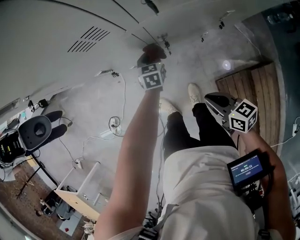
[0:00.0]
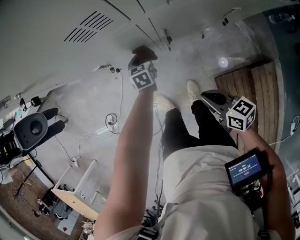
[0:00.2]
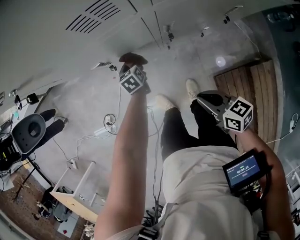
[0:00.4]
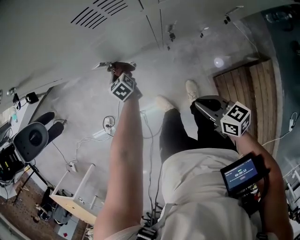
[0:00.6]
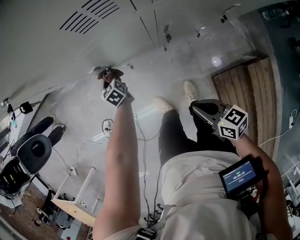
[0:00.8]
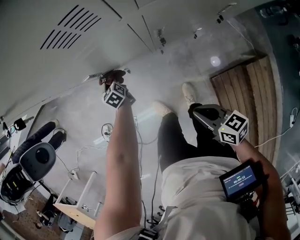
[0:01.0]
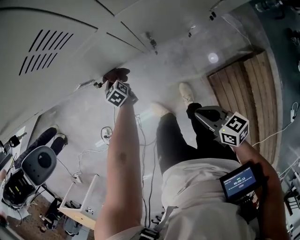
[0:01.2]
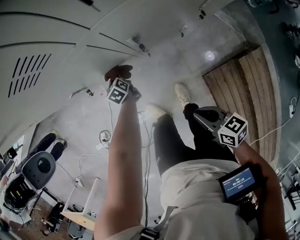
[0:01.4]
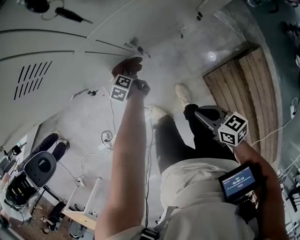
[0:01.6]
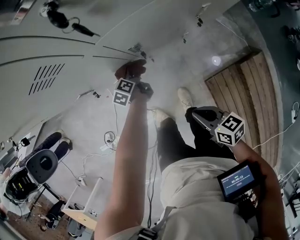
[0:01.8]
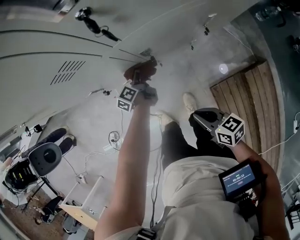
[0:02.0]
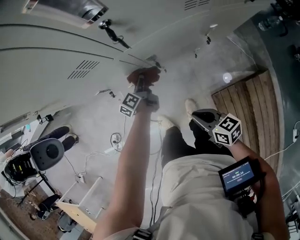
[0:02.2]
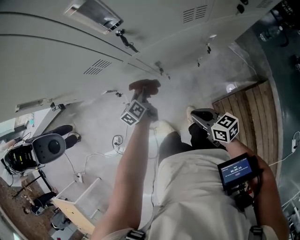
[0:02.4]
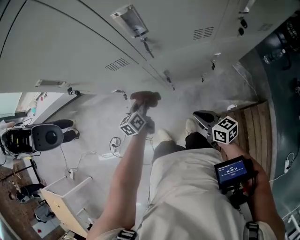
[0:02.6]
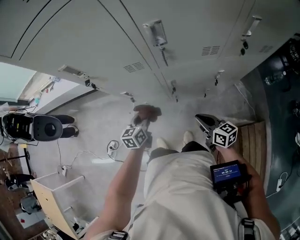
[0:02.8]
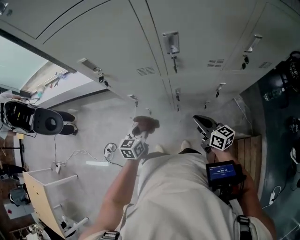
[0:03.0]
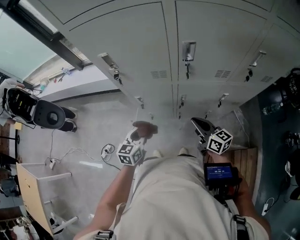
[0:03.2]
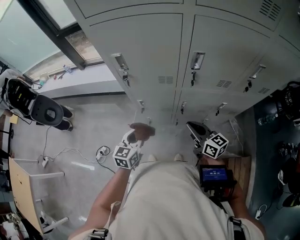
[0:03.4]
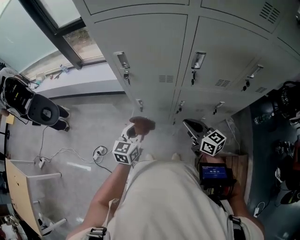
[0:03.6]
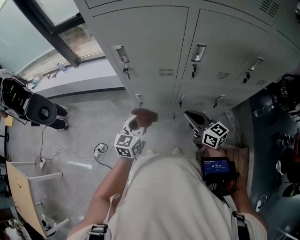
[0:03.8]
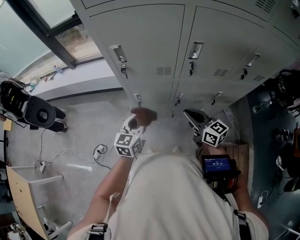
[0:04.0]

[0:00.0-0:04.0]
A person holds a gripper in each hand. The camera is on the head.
0:00.0 to 0:01.4: The right gripper moves downward, approximately 5 cm. The left gripper moves downward and to the left, roughly 20 cm, and turns by about 30 degrees.
0:01.4 to 0:02.6: The left gripper heads upward, covering some 30 cm, and swivels some 30 degrees. The right gripper goes approximately 15 cm upward, forward and to the right.
0:02.6 to 0:04.0: The left gripper moves upward, to the left and backward, approximately 25 cm, and changes its angle by roughly 30 degrees, while the right gripper heads upward and to the left, covering about 20 cm, and swivels approximately 20 degrees.

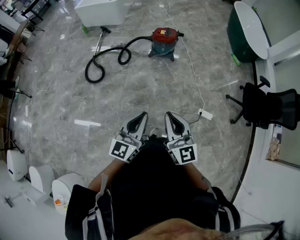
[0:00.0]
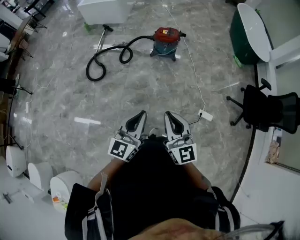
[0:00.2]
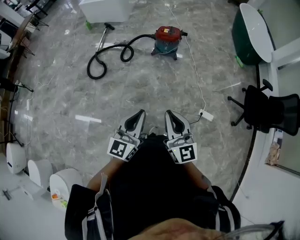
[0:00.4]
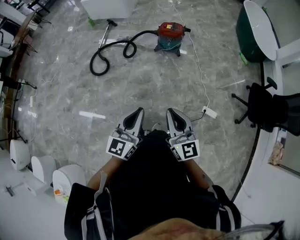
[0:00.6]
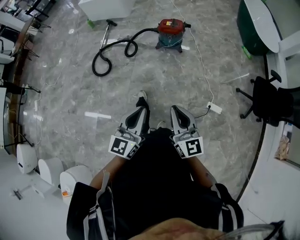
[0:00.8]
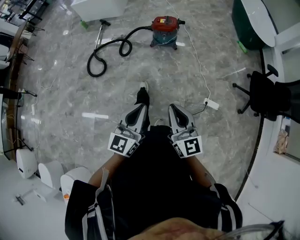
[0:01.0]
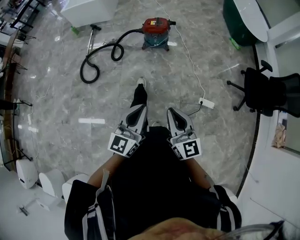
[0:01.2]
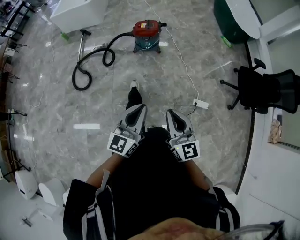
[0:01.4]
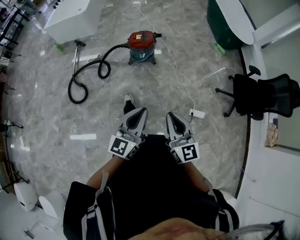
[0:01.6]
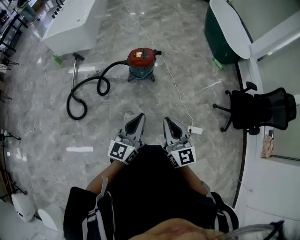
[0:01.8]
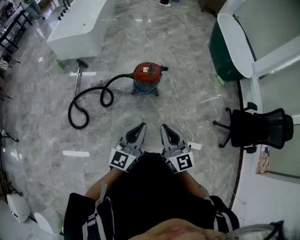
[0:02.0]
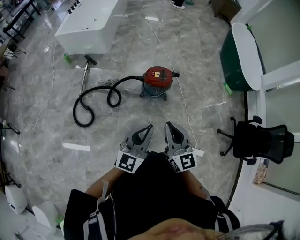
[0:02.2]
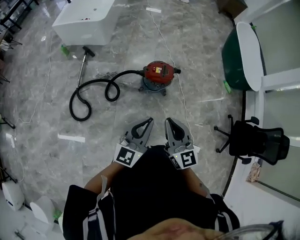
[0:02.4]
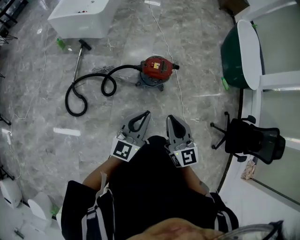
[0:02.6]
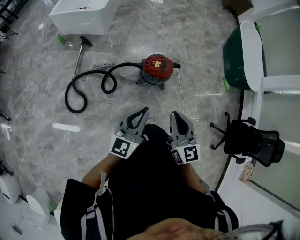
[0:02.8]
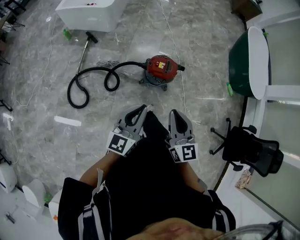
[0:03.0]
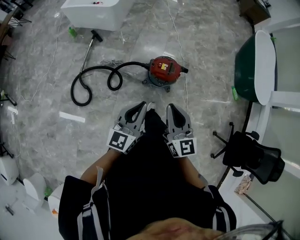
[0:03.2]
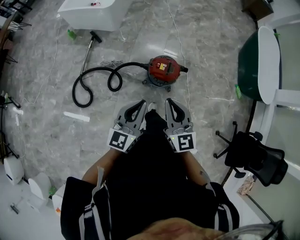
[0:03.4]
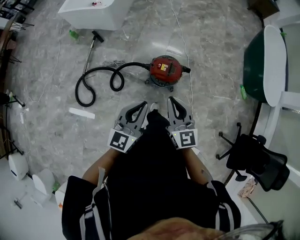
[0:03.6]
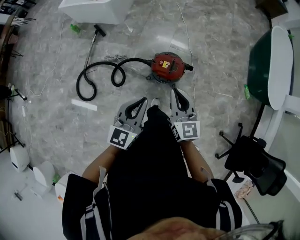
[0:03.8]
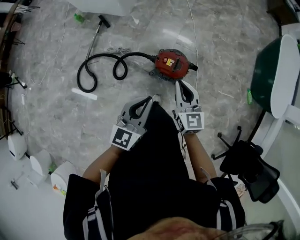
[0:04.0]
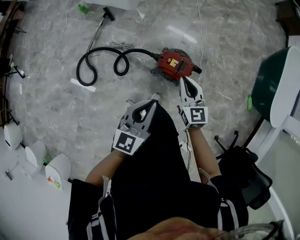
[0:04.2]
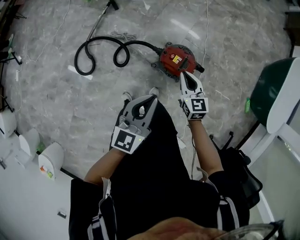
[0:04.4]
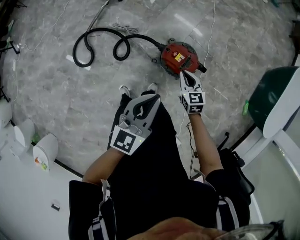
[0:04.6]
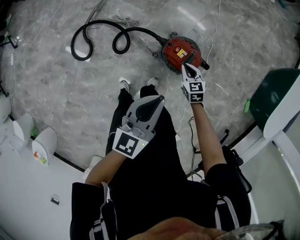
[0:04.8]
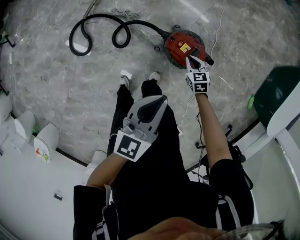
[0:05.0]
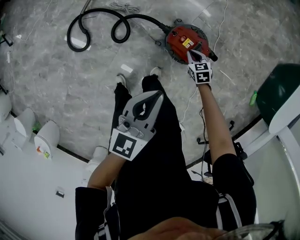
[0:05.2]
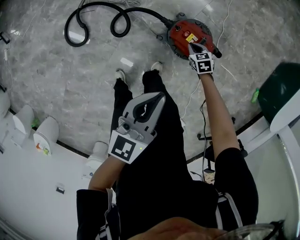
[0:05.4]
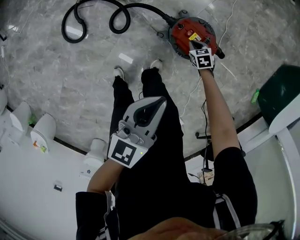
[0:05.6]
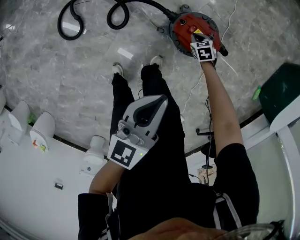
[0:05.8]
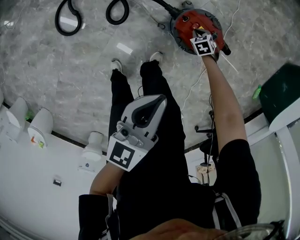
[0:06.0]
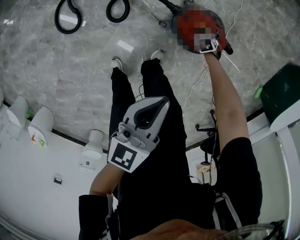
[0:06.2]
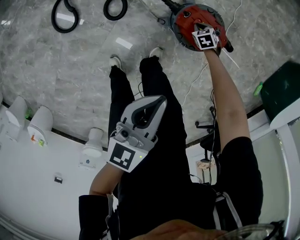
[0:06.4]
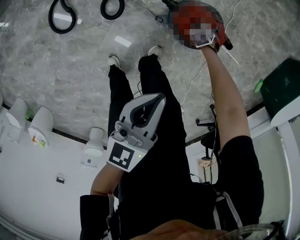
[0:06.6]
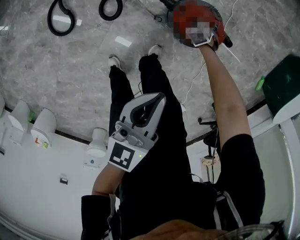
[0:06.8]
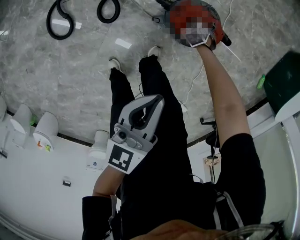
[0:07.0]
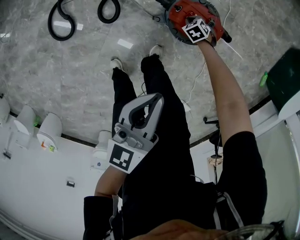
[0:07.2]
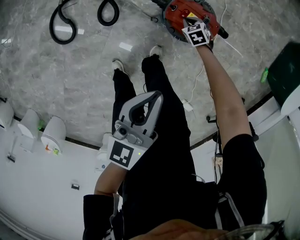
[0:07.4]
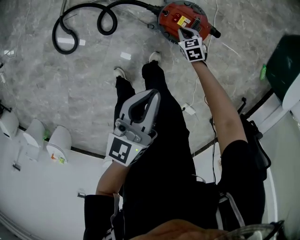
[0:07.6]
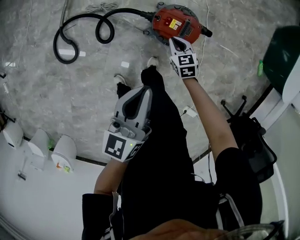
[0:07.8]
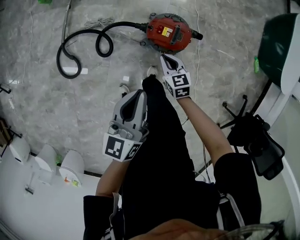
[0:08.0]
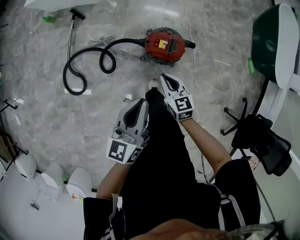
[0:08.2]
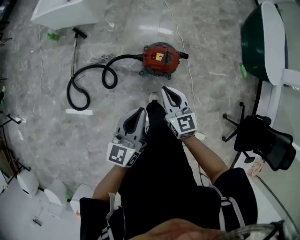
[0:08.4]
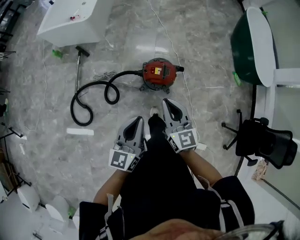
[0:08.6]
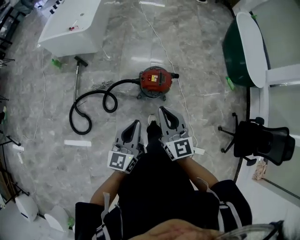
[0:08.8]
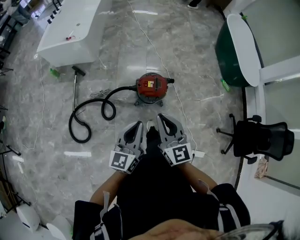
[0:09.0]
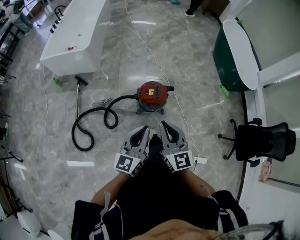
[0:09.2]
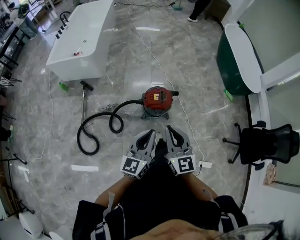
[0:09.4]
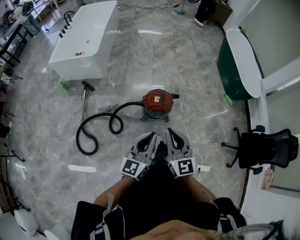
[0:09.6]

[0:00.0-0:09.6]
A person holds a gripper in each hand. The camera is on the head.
0:00.0 to 0:01.6: The grippers both shift forward and to the right by about 15 cm.
0:01.6 to 0:03.2: The two grippers travel together, forward, about 50 cm.
0:03.2 to 0:04.8: The right gripper is displaced downward and forward by some 50 cm, and angles its fingers downward, by some 40 degrees, while the left gripper goes about 20 cm forward, to the right and downward.
0:04.8 to 0:06.4: The left gripper goes approximately 15 cm downward, while the right gripper moves downward, about 30 cm, and turns by roughly 30 degrees.
0:06.4 to 0:08.0: The right gripper heads upward, covering about 30 cm, and points its fingers approximately 30 degrees further upward. The left gripper travels upward by approximately 10 cm.
0:08.0 to 0:09.6: The left gripper shifts by about 25 cm, and swivels approximately 30 degrees. Meanwhile the right gripper shifts some 40 cm upward, and tips its fingers upward by about 40 degrees.

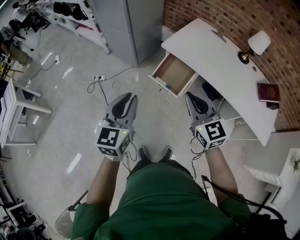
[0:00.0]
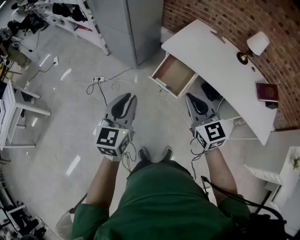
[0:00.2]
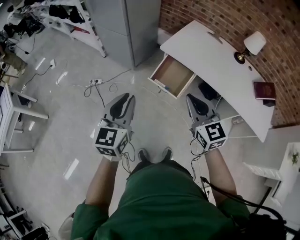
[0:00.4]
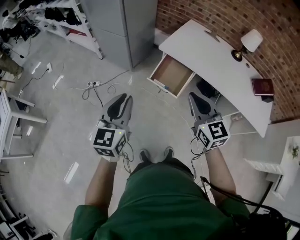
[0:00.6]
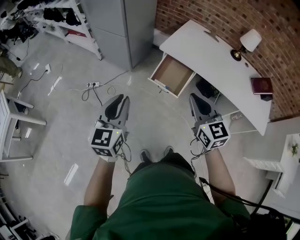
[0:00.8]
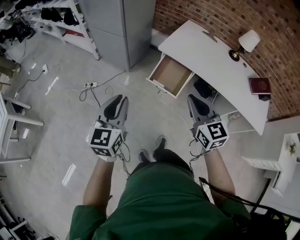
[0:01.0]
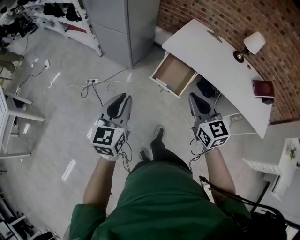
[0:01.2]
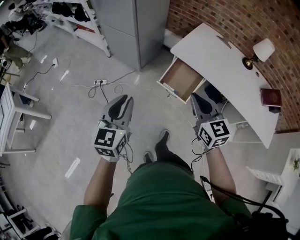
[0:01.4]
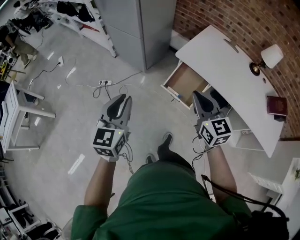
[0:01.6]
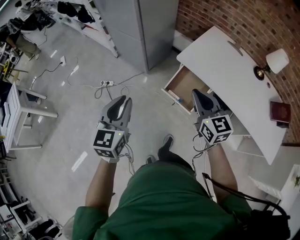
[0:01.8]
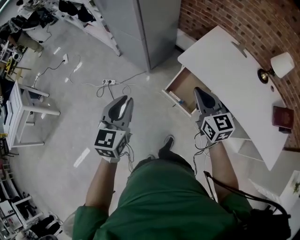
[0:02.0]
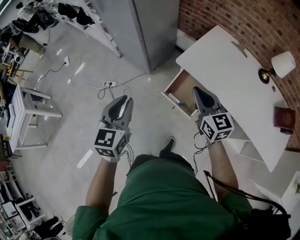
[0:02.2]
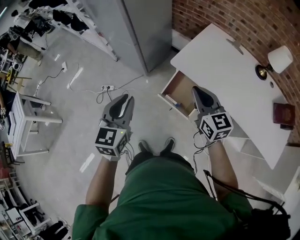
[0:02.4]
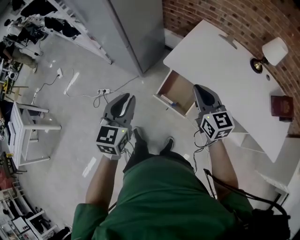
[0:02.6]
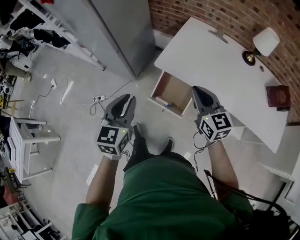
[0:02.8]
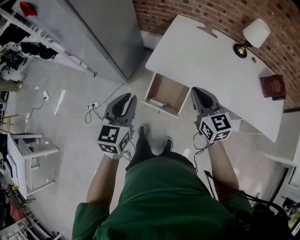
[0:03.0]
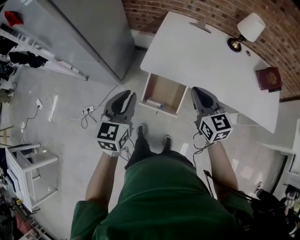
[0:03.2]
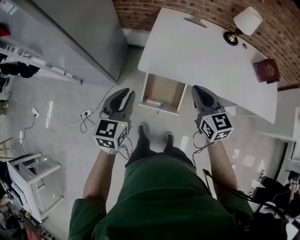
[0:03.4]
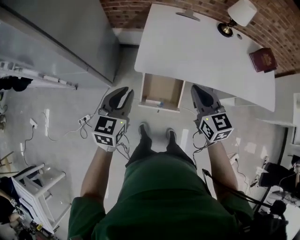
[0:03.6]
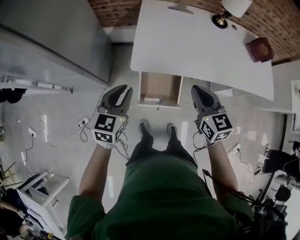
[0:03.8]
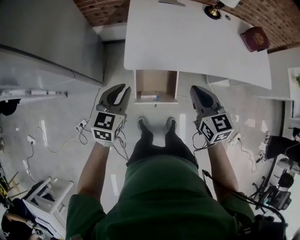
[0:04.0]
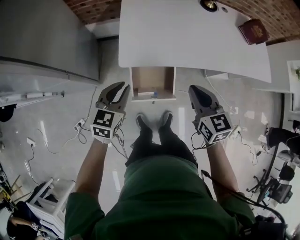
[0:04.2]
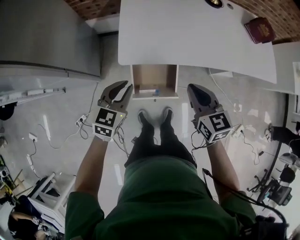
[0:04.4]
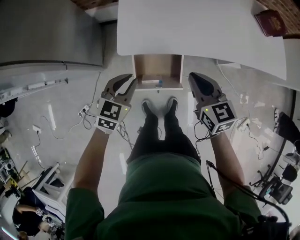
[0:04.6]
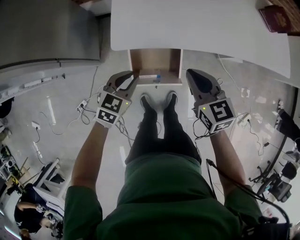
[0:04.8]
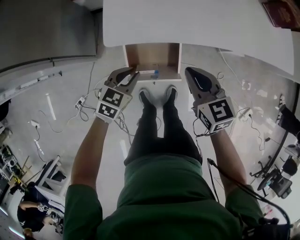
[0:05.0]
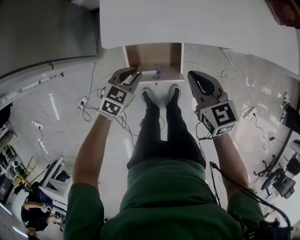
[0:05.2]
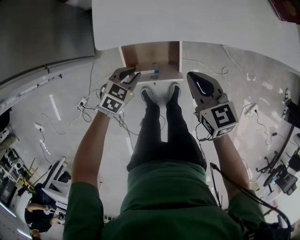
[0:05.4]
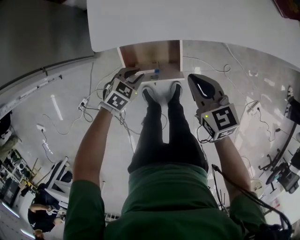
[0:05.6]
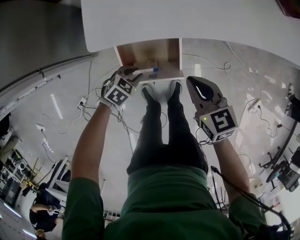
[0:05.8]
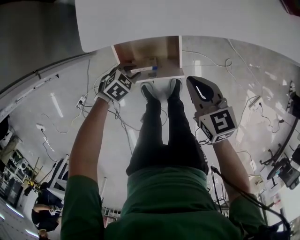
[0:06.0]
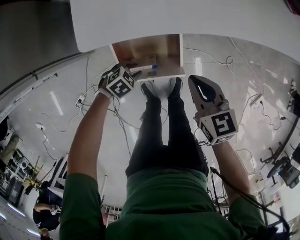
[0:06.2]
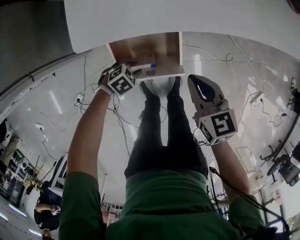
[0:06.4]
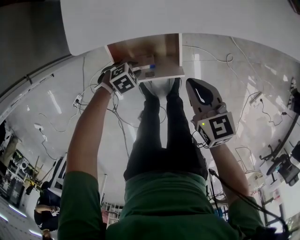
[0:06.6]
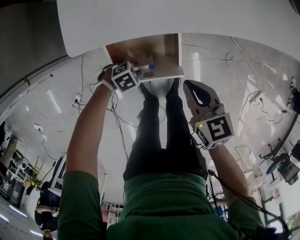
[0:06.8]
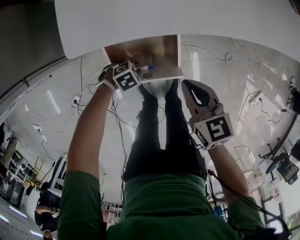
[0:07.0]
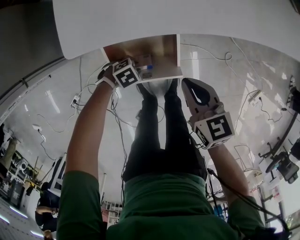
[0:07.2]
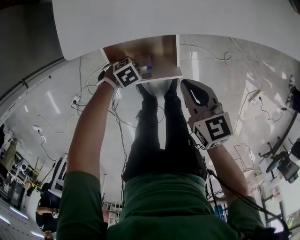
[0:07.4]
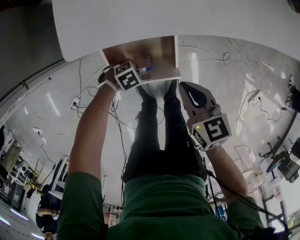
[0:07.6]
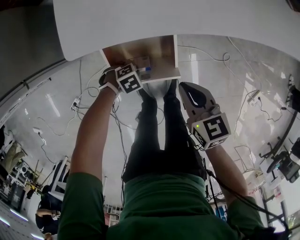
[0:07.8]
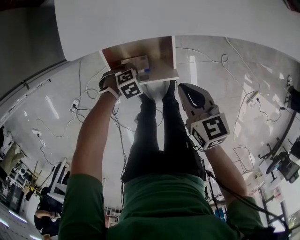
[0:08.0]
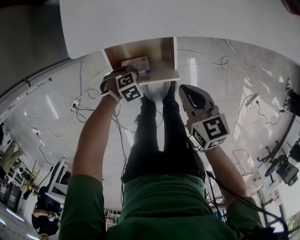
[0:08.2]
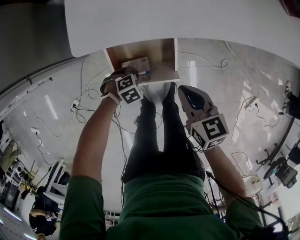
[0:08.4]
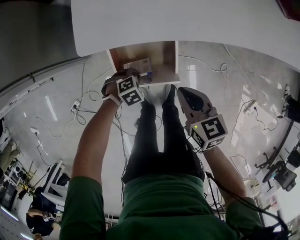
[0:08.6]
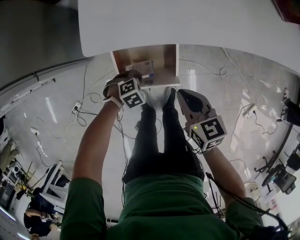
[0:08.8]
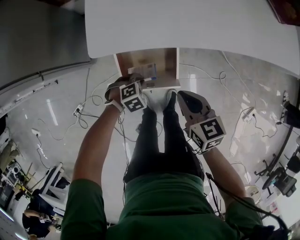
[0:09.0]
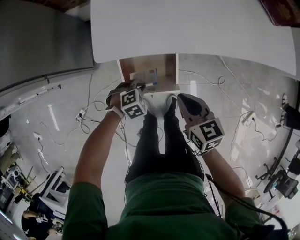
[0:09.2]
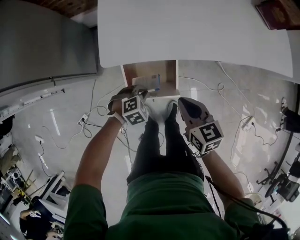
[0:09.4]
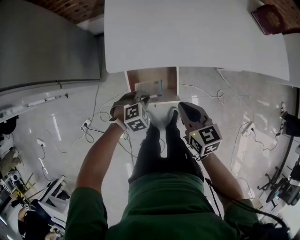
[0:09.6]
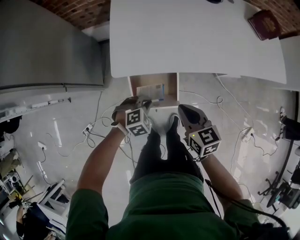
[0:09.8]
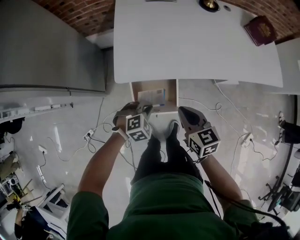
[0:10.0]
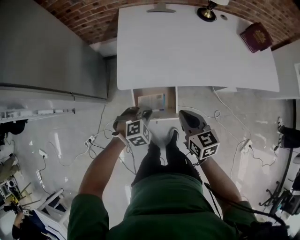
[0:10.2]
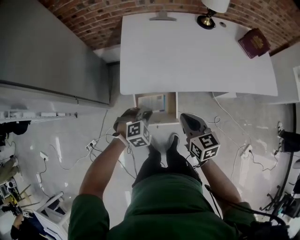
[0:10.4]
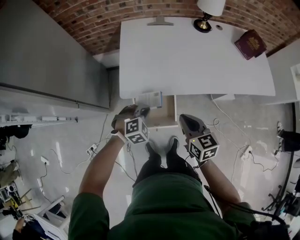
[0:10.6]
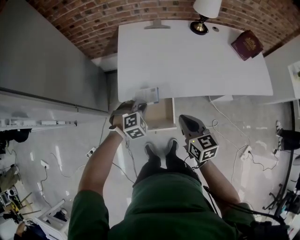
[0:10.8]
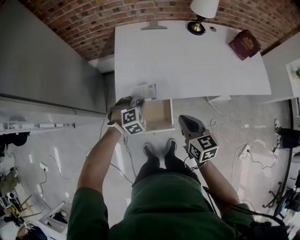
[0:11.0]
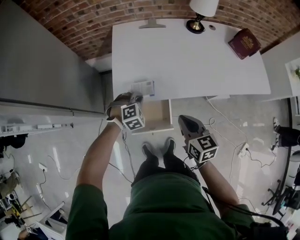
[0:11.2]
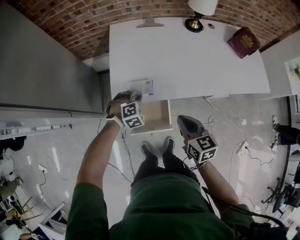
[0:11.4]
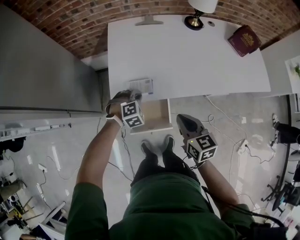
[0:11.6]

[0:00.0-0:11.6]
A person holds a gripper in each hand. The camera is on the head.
0:00.0 to 0:01.4: The left gripper heads to the left, covering about 10 cm; the right gripper travels to the left by about 5 cm.
0:01.4 to 0:02.8: Both grippers travel together forward and to the right, about 25 cm.
0:02.8 to 0:04.4: The left gripper shifts roughly 20 cm downward, and changes its angle by about 40 degrees. Meanwhile the right gripper moves downward, about 10 cm, and turns by some 30 degrees.
0:04.4 to 0:05.8: The left gripper travels downward by about 30 cm, and tilts its fingers about 30 degrees downward. The right gripper moves downward, some 15 cm.
0:05.8 to 0:07.2: The left gripper is displaced downward by some 10 cm, and swivels about 30 degrees; the right gripper travels downward by about 5 cm.
0:07.2 to 0:08.8: The left gripper shifts approximately 5 cm upward.
0:08.8 to 0:10.2: The left gripper heads upward, covering approximately 25 cm, and turns by roughly 20 degrees. Meanwhile the right gripper is displaced upward by roughly 15 cm.
0:10.2 to 0:11.6: The left gripper goes roughly 15 cm forward.
